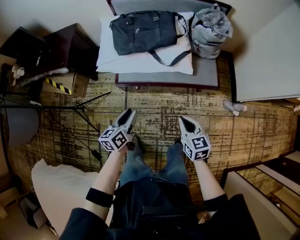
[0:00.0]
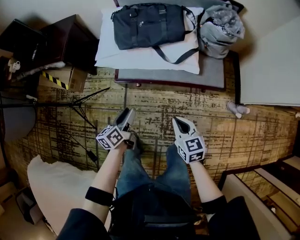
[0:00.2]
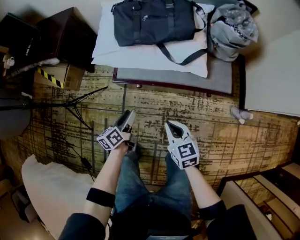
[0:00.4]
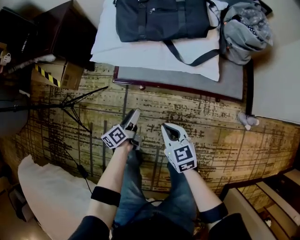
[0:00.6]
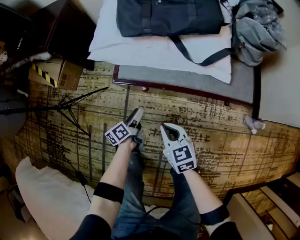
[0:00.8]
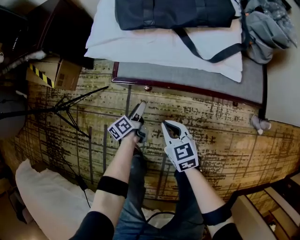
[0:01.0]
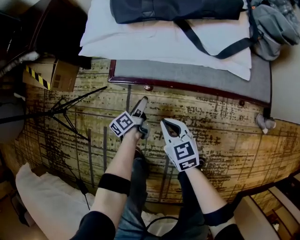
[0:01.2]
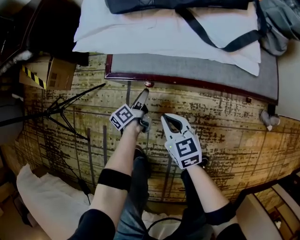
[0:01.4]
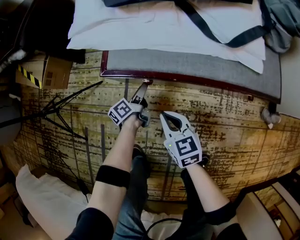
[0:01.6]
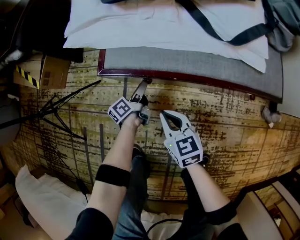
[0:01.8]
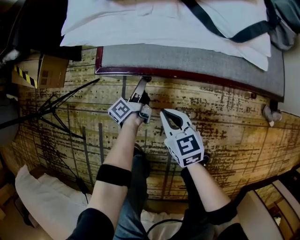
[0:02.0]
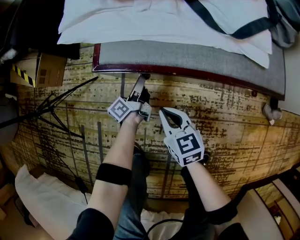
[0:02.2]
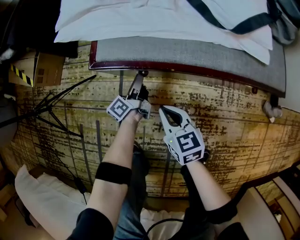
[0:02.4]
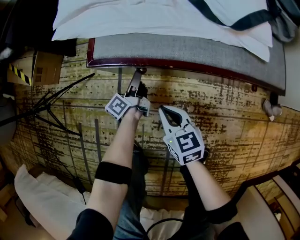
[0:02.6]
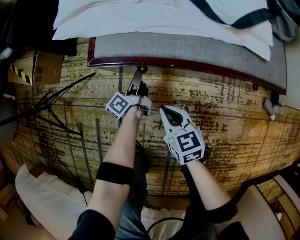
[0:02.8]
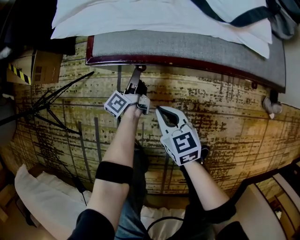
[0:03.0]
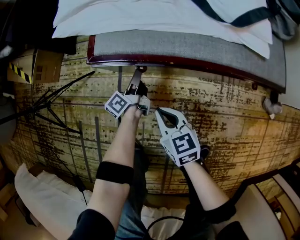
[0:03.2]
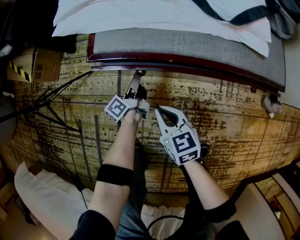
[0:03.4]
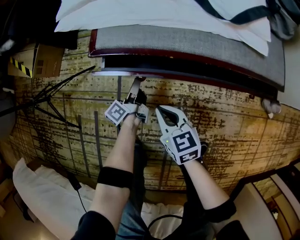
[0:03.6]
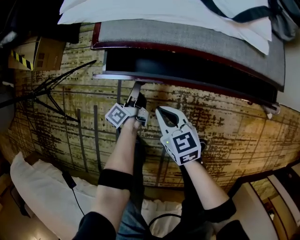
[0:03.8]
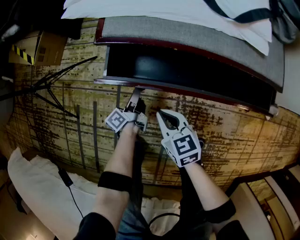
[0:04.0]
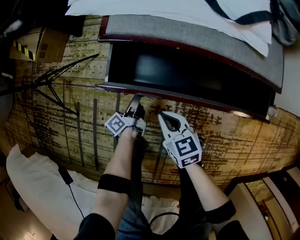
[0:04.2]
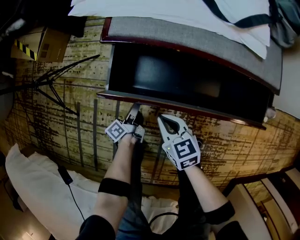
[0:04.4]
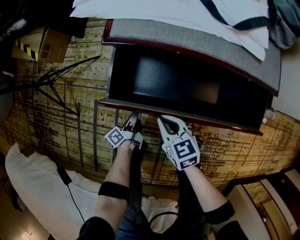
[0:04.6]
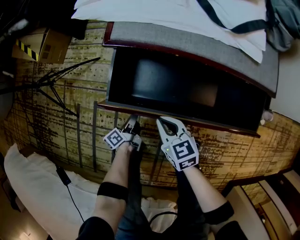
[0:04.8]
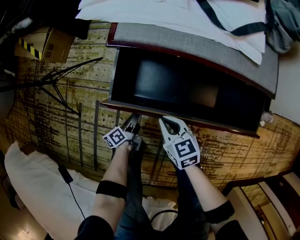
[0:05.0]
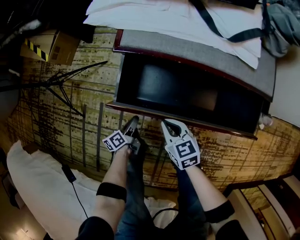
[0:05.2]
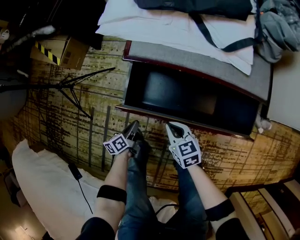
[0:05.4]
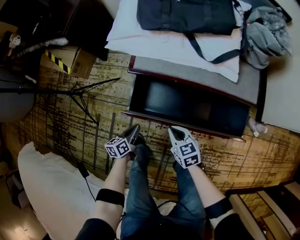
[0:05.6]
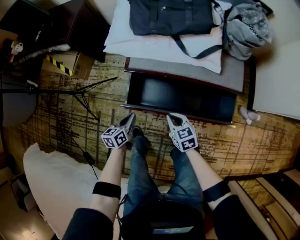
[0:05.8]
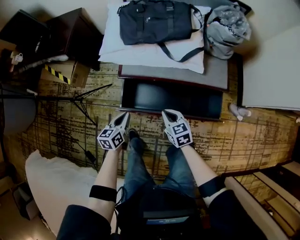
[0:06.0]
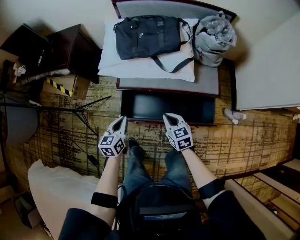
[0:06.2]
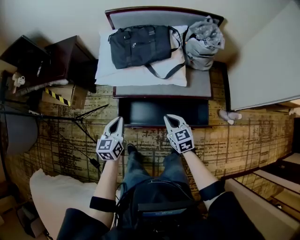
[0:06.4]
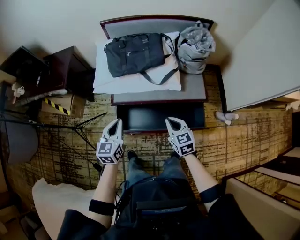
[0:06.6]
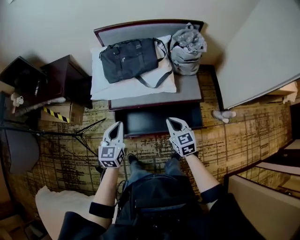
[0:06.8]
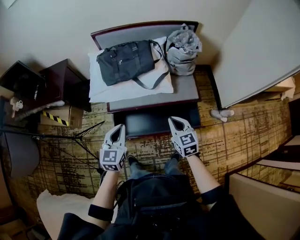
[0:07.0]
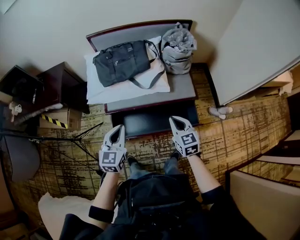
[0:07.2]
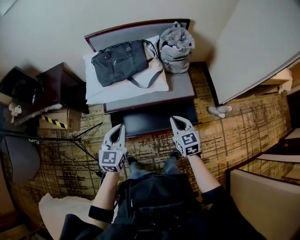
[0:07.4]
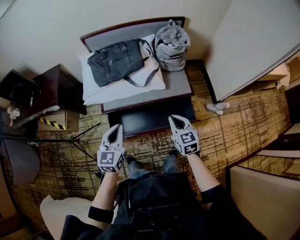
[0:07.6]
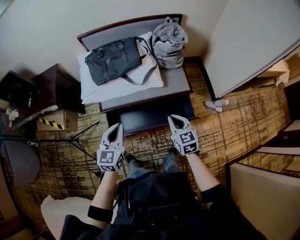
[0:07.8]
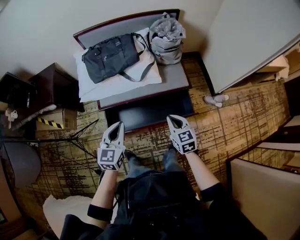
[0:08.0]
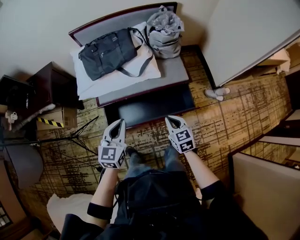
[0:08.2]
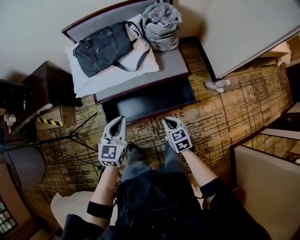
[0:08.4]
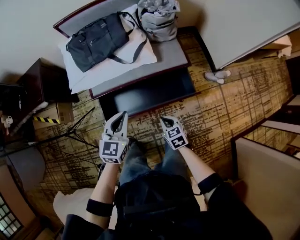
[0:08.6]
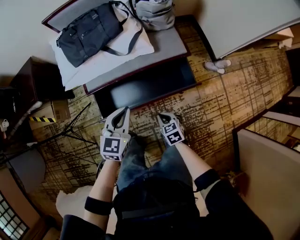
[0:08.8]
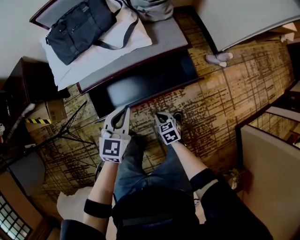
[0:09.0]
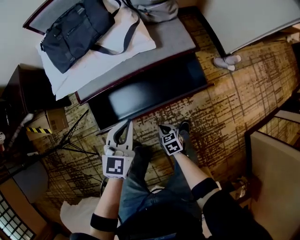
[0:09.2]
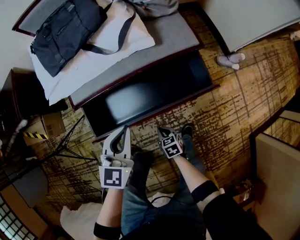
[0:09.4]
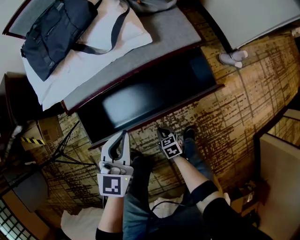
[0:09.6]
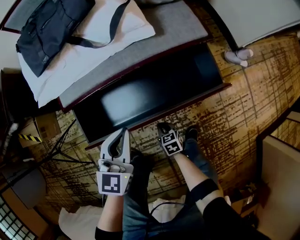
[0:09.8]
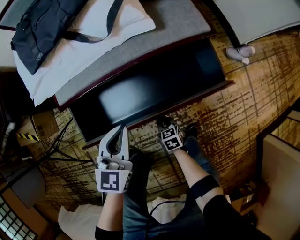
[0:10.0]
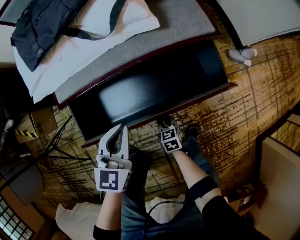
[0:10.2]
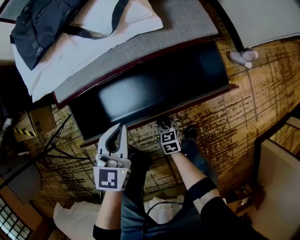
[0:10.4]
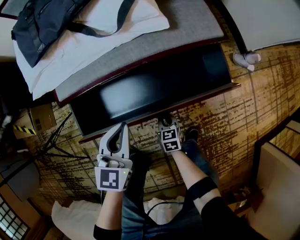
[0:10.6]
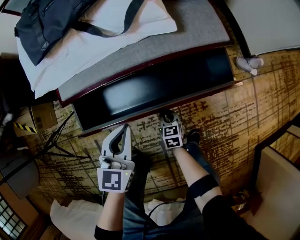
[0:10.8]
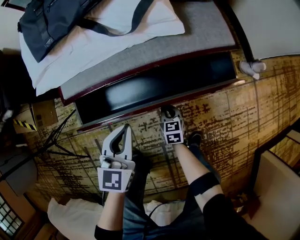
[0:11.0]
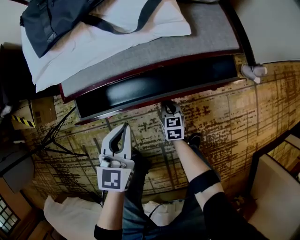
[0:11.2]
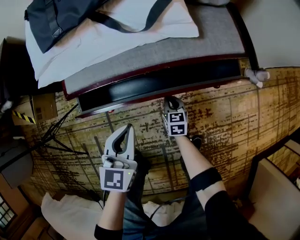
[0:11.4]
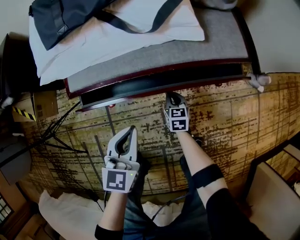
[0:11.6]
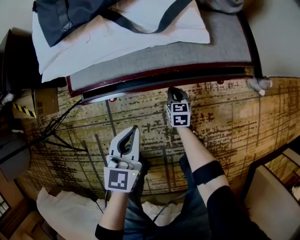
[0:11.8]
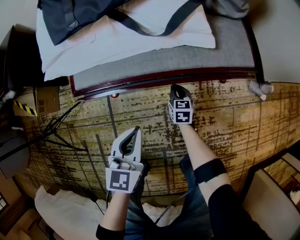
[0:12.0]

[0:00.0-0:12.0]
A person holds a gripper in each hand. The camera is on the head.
0:00.0 to 0:01.6: The right gripper heads downward and to the left, covering about 50 cm, while the left gripper moves downward, some 60 cm, rotates approximately 30 degrees, and opens its fingers.
0:01.6 to 0:03.0: The left gripper closes its fingers.
0:03.0 to 0:04.4: The left gripper moves backward, about 20 cm. The right gripper is displaced backward by approximately 10 cm.
0:04.4 to 0:06.0: The grippers both shift upward by approximately 35 cm. The left gripper rolls clockwise, seen from behind, by approximately 50 degrees.
0:06.0 to 0:07.6: Both grippers travel together upward and to the right, about 30 cm. The left gripper rotates roughly 40 degrees; the right gripper turns by roughly 30 degrees.
0:07.6 to 0:09.0: The left gripper shifts approximately 20 cm downward and to the right, and swivels about 20 degrees. Meanwhile the right gripper moves downward, approximately 35 cm, and changes its angle by some 30 degrees.
0:09.0 to 0:10.4: Both grippers move downward, some 25 cm.
0:10.4 to 0:12.0: The right gripper goes approximately 20 cm forward. The left gripper goes approximately 5 cm to the left.

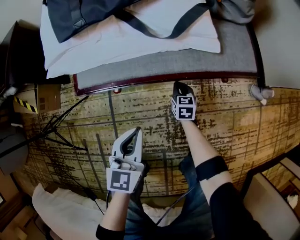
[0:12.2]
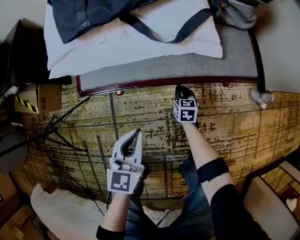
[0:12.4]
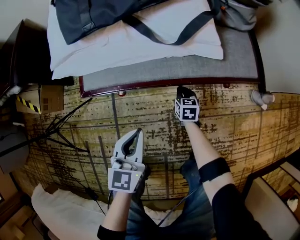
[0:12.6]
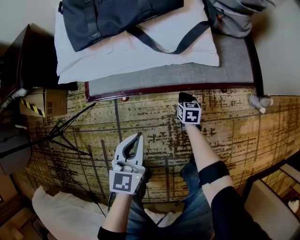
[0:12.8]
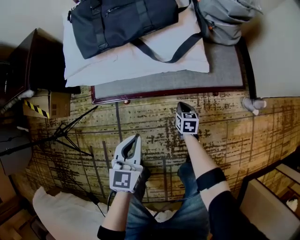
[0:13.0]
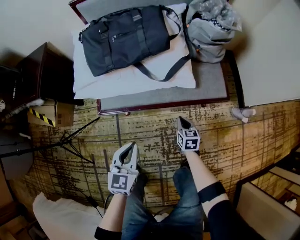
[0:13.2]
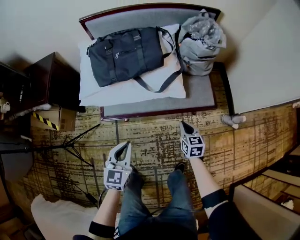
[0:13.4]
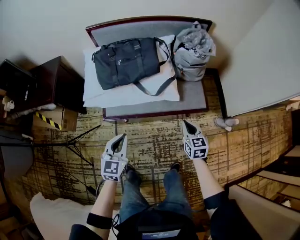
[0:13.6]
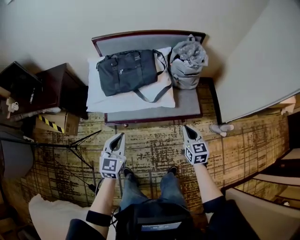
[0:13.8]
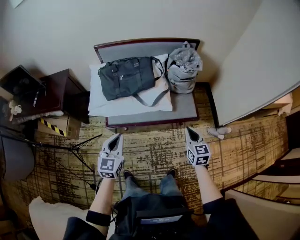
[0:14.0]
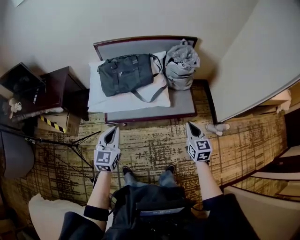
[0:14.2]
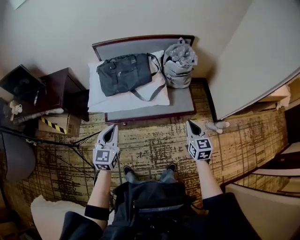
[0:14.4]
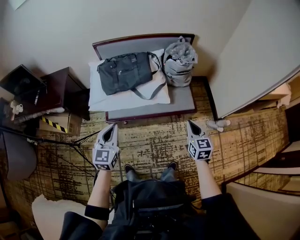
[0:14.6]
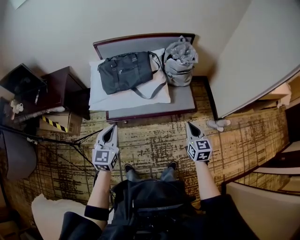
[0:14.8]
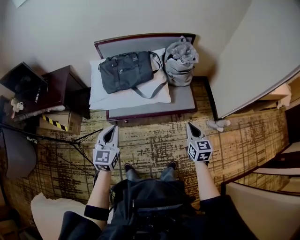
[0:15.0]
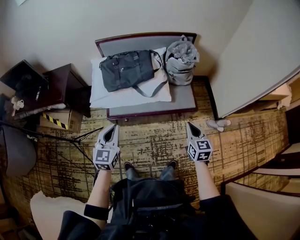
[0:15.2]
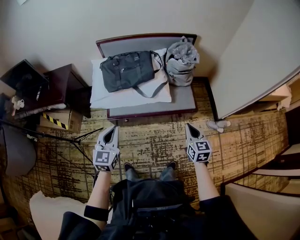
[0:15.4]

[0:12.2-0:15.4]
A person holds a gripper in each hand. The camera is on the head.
0:12.2 to 0:13.8: The right gripper travels upward by approximately 60 cm. The left gripper shifts about 40 cm upward.
0:13.8 to 0:15.4: The left gripper is displaced upward and backward by approximately 10 cm. Meanwhile the right gripper shifts about 10 cm backward and upward.

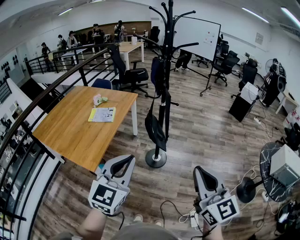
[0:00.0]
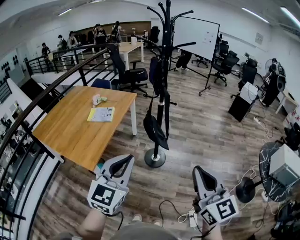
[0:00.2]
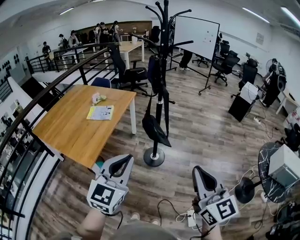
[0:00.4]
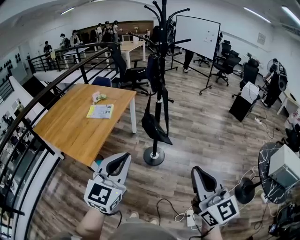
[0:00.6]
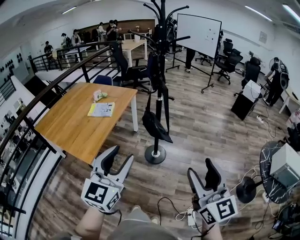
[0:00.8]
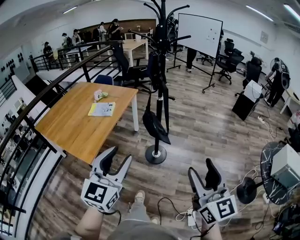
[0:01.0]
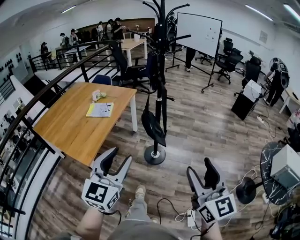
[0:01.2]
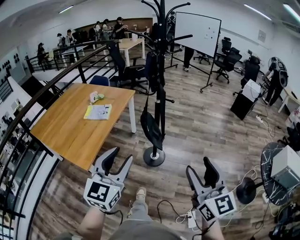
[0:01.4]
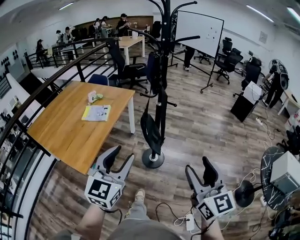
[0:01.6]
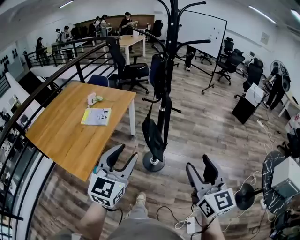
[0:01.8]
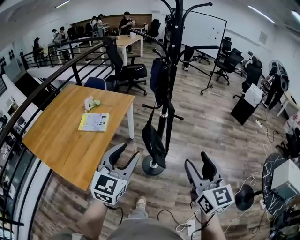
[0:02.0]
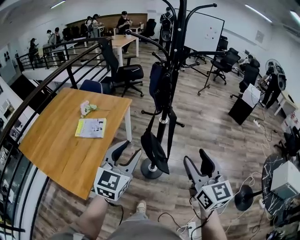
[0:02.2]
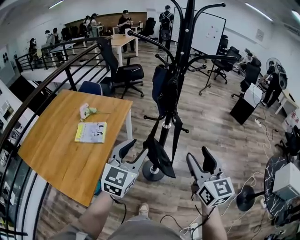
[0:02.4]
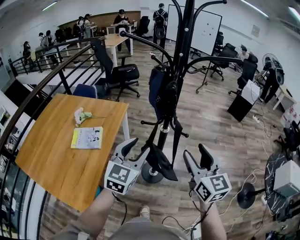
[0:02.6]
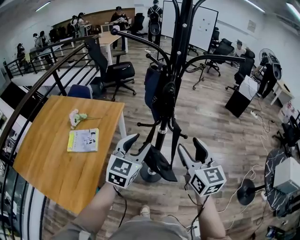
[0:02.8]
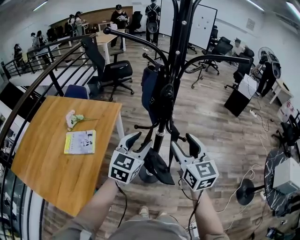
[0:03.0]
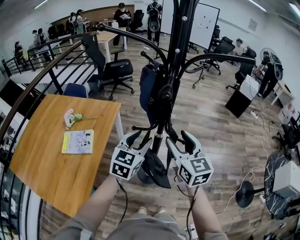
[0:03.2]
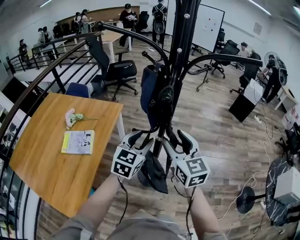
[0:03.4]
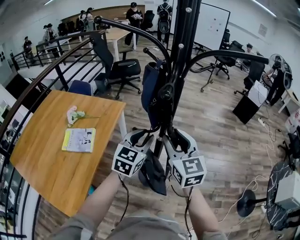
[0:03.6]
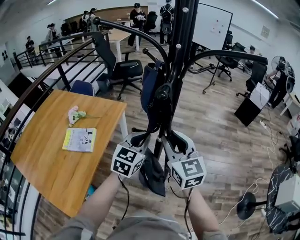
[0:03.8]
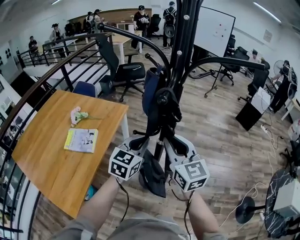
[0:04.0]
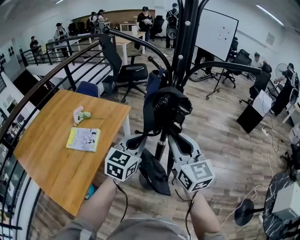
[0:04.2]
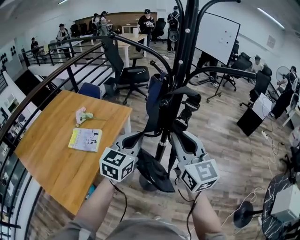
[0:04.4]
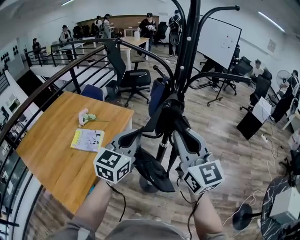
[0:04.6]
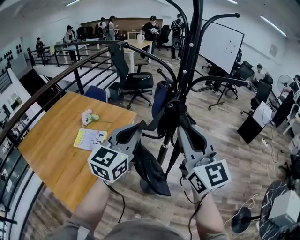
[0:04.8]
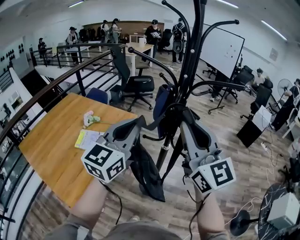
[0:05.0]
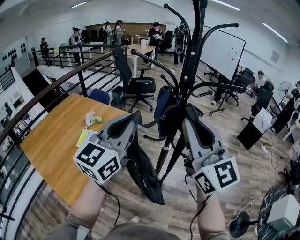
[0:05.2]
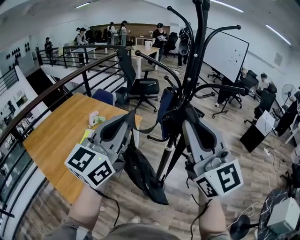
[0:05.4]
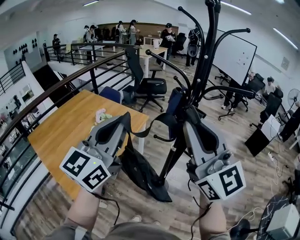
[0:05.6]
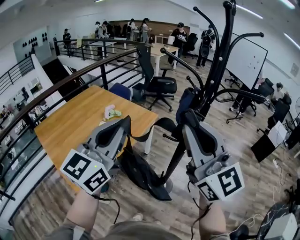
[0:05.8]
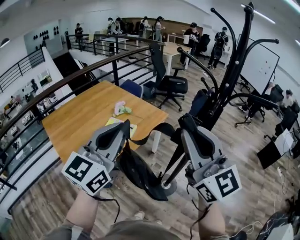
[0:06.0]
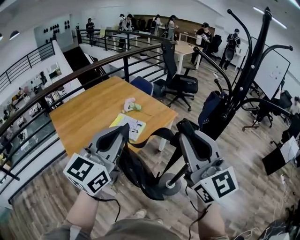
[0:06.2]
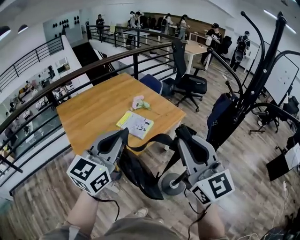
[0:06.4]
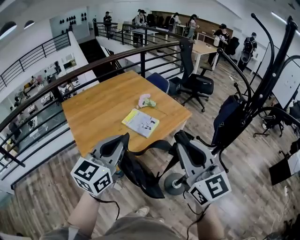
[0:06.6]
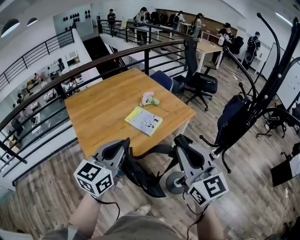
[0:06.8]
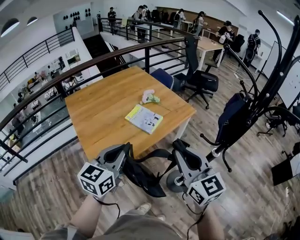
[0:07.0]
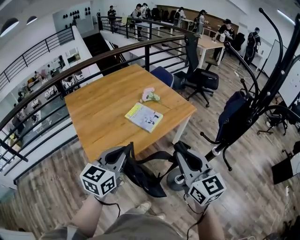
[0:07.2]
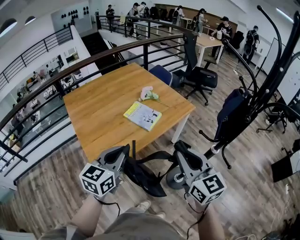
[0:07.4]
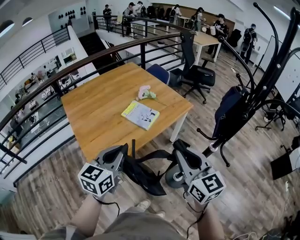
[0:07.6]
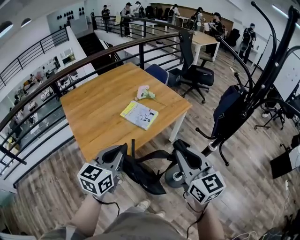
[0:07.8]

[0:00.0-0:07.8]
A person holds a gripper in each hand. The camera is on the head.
0:00.0 to 0:01.6: The grippers both shift forward by about 10 cm. The left gripper opens its fingers. Meanwhile the right gripper opens up.
0:01.6 to 0:03.2: Both grippers are carried forward, about 40 cm.
0:03.2 to 0:04.6: The grippers both shift upward by some 10 cm. The left gripper closes up. The right gripper rotates about 20 degrees, and closes.
0:04.6 to 0:06.2: The right gripper changes place by roughly 15 cm, and turns by some 30 degrees; the left gripper changes place by approximately 25 cm, and changes its angle by about 30 degrees.
0:06.2 to 0:07.8: The two grippers go approximately 15 cm downward. The right gripper changes its angle by roughly 20 degrees. Meanwhile the left gripper swivels about 20 degrees.
